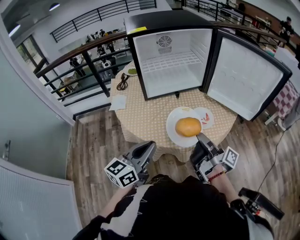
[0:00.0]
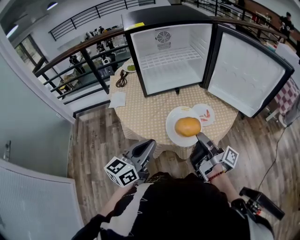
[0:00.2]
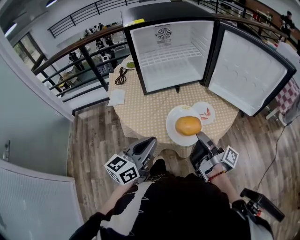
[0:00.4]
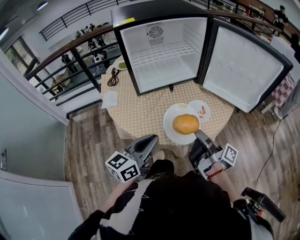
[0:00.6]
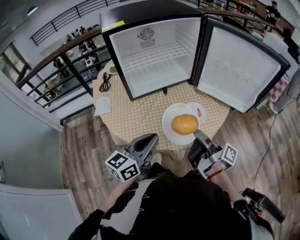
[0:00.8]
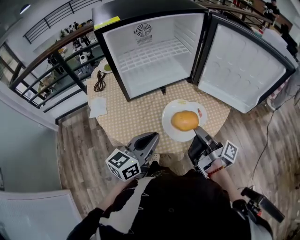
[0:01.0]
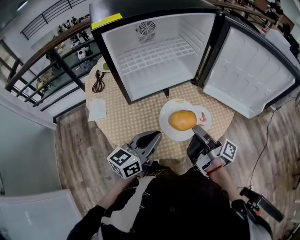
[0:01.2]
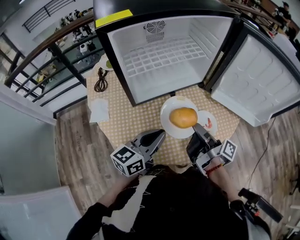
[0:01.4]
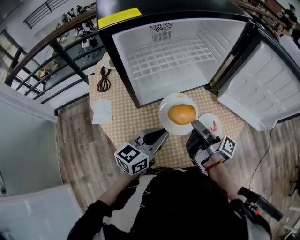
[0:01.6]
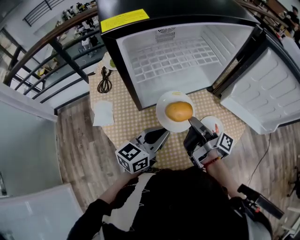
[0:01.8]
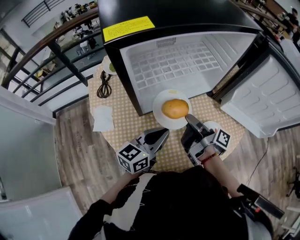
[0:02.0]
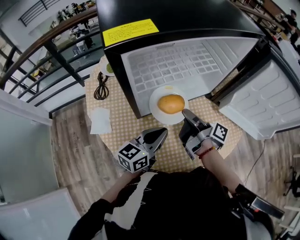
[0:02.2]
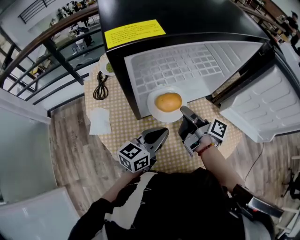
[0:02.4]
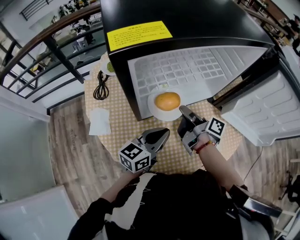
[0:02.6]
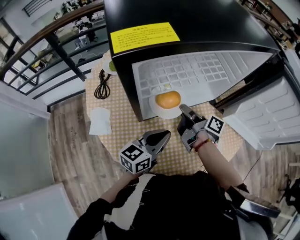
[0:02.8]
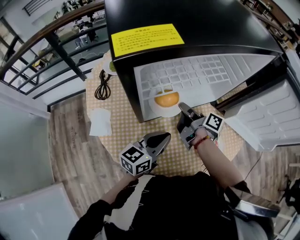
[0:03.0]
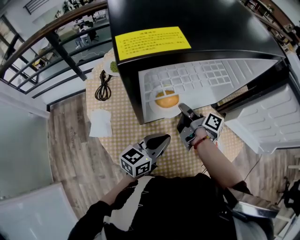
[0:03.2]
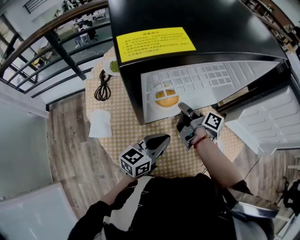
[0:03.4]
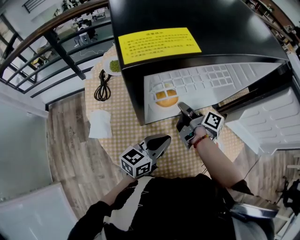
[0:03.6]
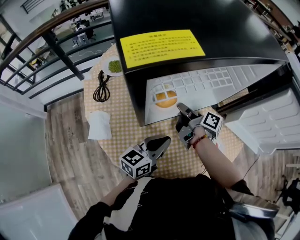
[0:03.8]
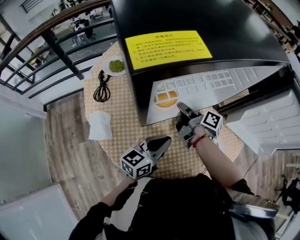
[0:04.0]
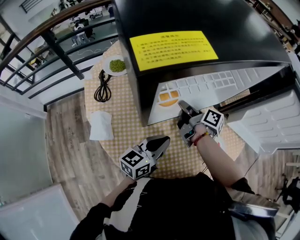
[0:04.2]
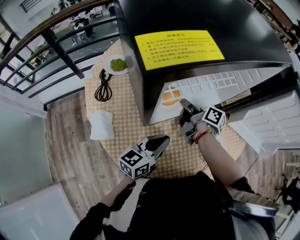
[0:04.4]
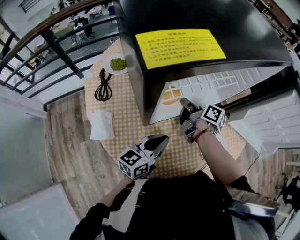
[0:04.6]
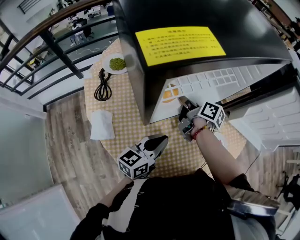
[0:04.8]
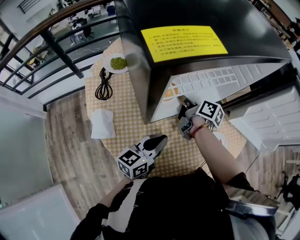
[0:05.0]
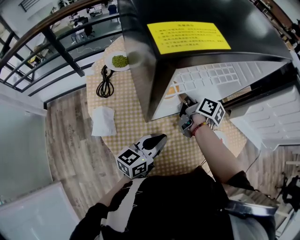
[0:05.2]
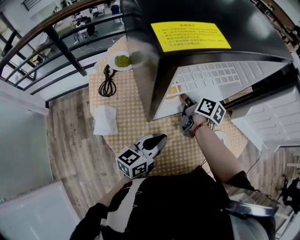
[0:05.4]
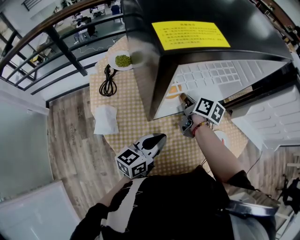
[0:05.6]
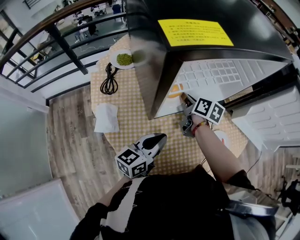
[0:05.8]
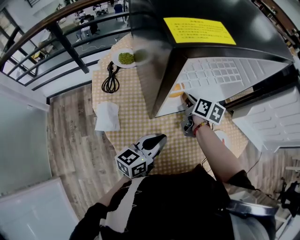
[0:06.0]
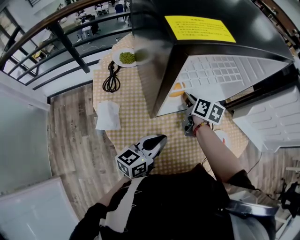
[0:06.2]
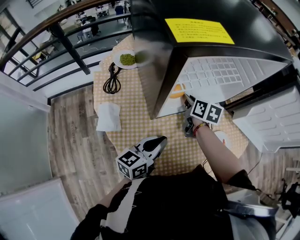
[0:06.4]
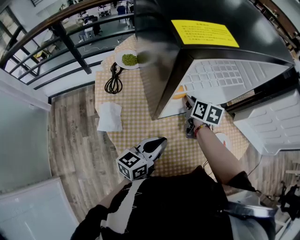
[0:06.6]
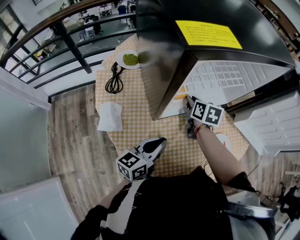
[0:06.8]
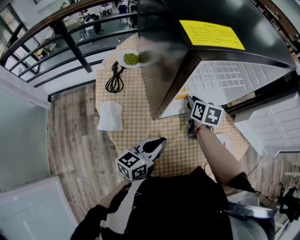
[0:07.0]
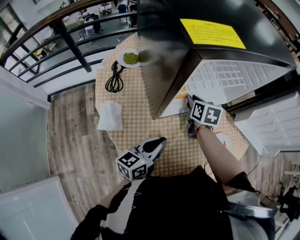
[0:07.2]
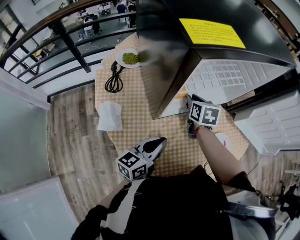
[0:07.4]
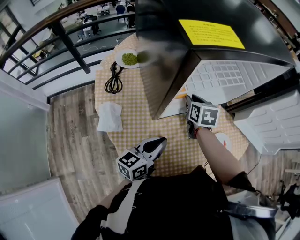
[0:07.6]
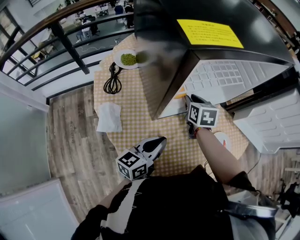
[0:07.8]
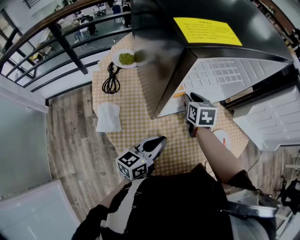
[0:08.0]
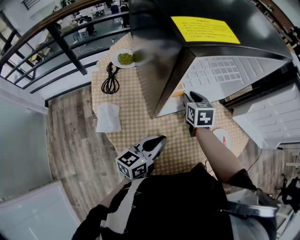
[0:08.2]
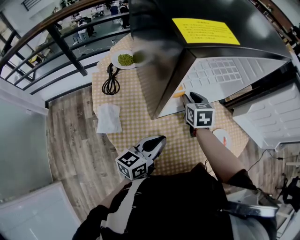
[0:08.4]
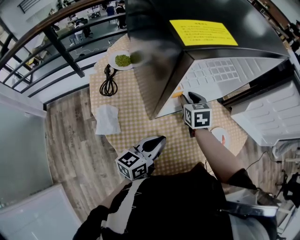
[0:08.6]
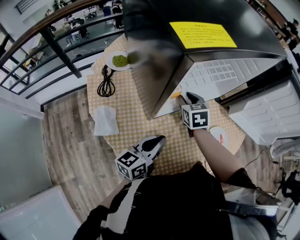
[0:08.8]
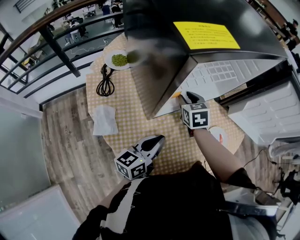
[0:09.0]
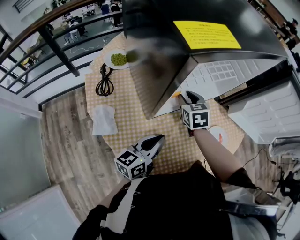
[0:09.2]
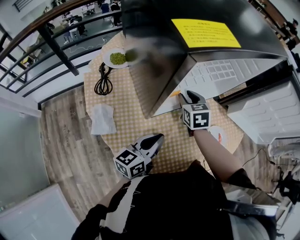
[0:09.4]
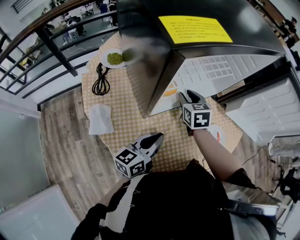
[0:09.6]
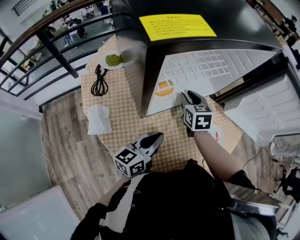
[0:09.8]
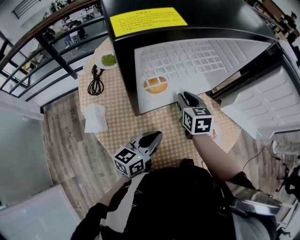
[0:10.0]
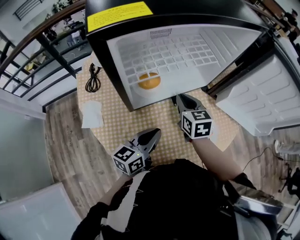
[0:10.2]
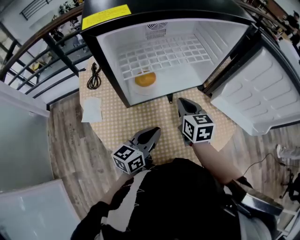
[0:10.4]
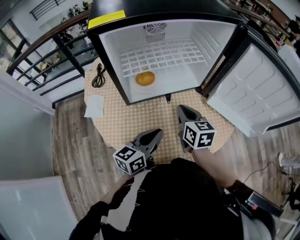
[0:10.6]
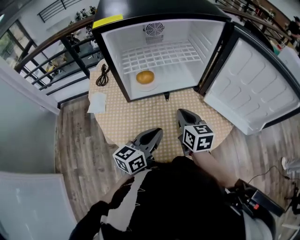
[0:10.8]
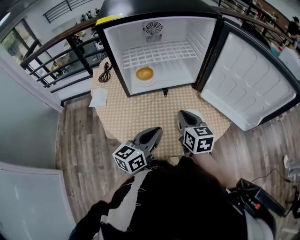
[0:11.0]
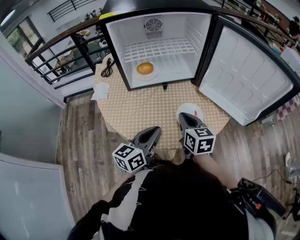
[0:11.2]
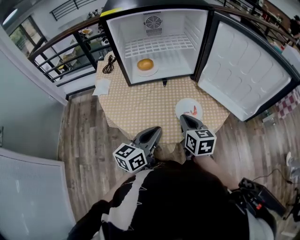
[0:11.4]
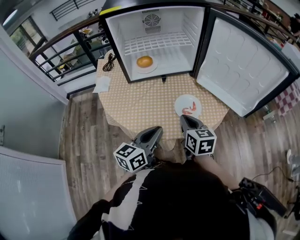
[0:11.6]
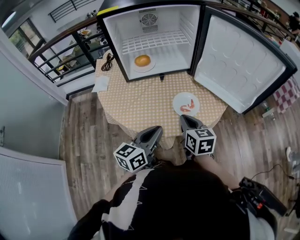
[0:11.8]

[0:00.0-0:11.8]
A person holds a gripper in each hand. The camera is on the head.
0:00.0 to 0:01.4: The grippers both shift forward by some 20 cm.
0:01.4 to 0:03.0: The right gripper moves forward and to the left, roughly 25 cm, and rotates approximately 20 degrees. The left gripper is displaced forward by about 10 cm.
0:03.0 to 0:04.4: There are only small adjustments of the grippers.
0:04.4 to 0:06.0: The right gripper changes its angle by roughly 30 degrees.
0:06.0 to 0:07.4: The right gripper changes its angle by some 30 degrees.
0:07.4 to 0:08.8: The grippers stay close to where they were, moving slightly.
0:08.8 to 0:10.4: The right gripper shifts some 15 cm to the right, backward and upward, and closes its fingers, while the left gripper moves to the right, roughly 10 cm.
0:10.4 to 0:11.8: The left gripper travels backward, upward and to the right by some 20 cm; the right gripper travels backward, to the right and upward by some 20 cm.

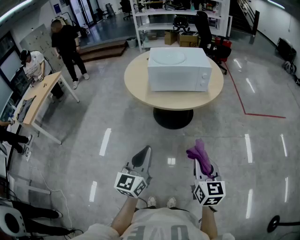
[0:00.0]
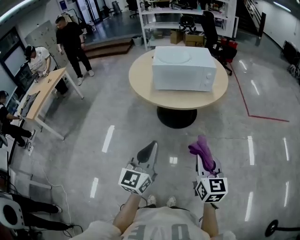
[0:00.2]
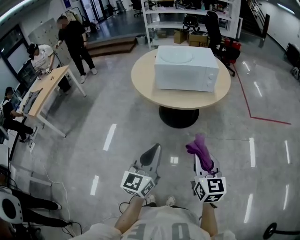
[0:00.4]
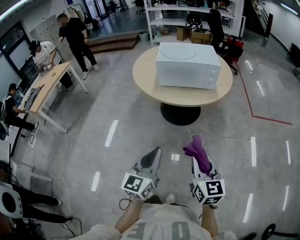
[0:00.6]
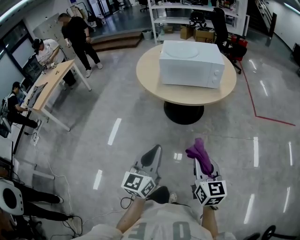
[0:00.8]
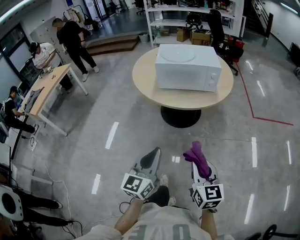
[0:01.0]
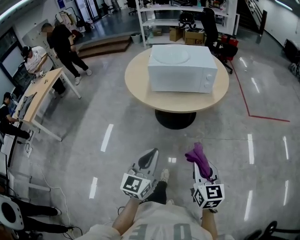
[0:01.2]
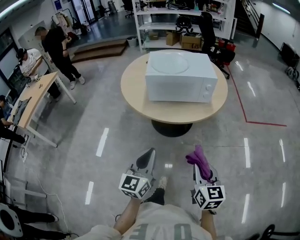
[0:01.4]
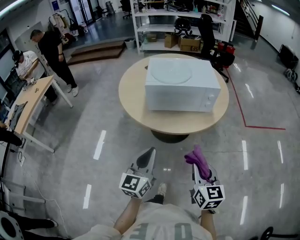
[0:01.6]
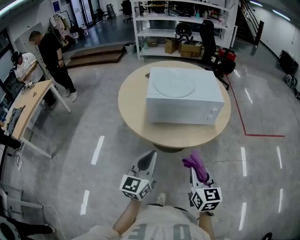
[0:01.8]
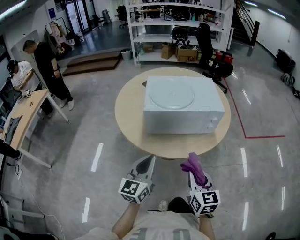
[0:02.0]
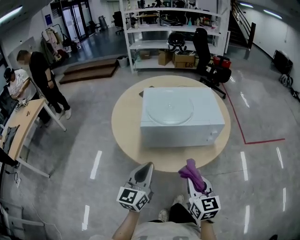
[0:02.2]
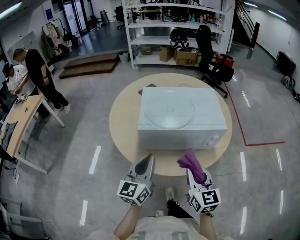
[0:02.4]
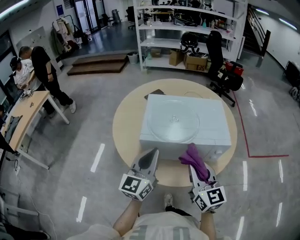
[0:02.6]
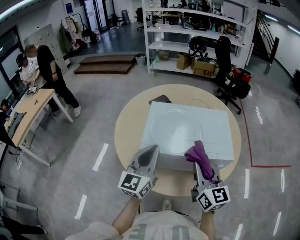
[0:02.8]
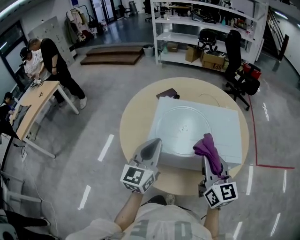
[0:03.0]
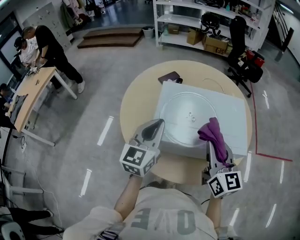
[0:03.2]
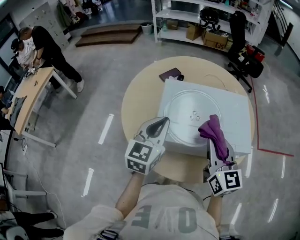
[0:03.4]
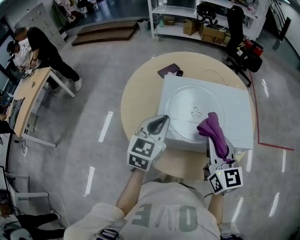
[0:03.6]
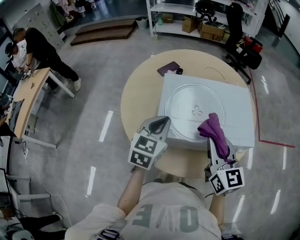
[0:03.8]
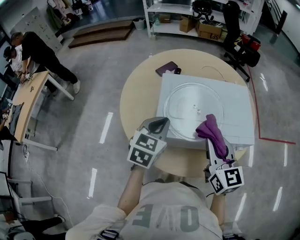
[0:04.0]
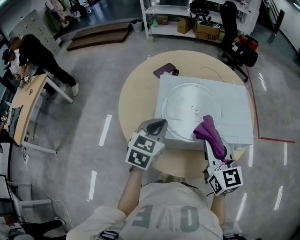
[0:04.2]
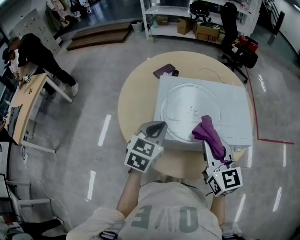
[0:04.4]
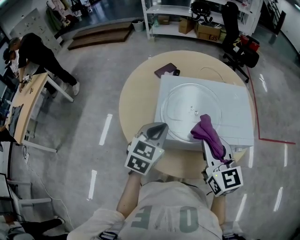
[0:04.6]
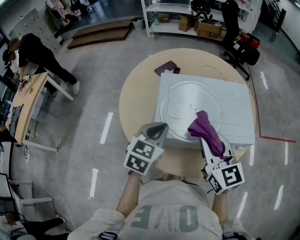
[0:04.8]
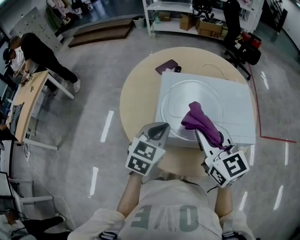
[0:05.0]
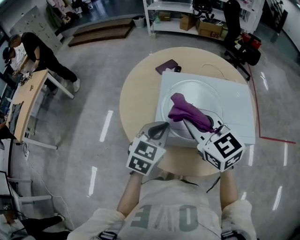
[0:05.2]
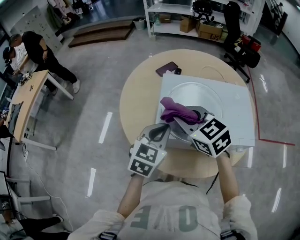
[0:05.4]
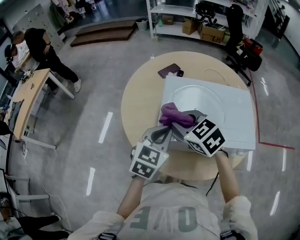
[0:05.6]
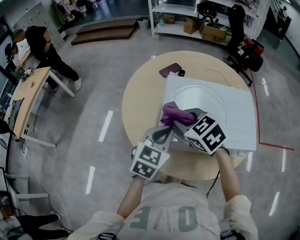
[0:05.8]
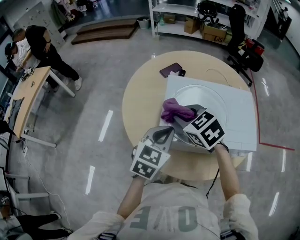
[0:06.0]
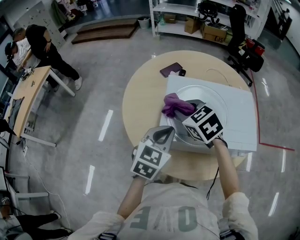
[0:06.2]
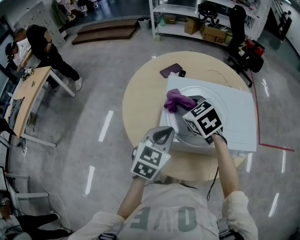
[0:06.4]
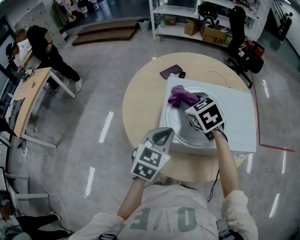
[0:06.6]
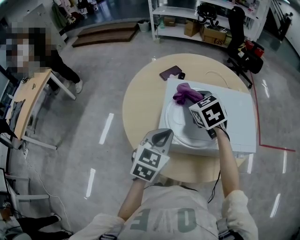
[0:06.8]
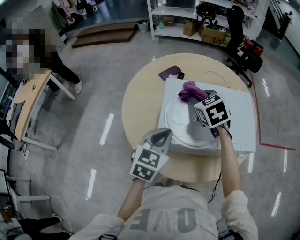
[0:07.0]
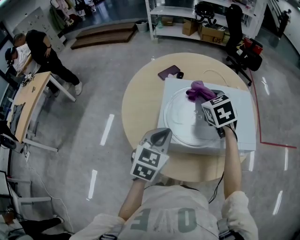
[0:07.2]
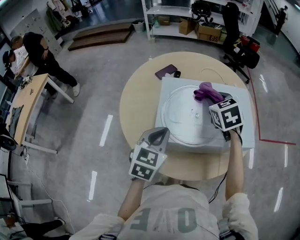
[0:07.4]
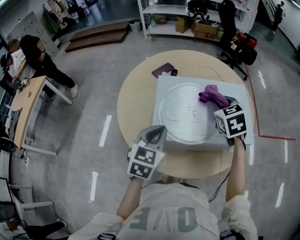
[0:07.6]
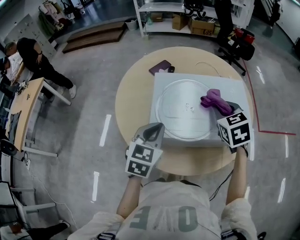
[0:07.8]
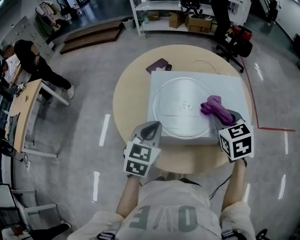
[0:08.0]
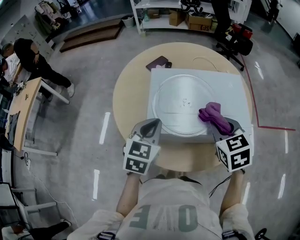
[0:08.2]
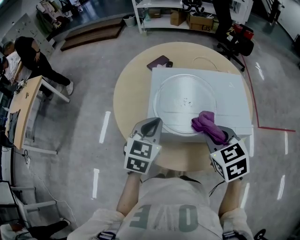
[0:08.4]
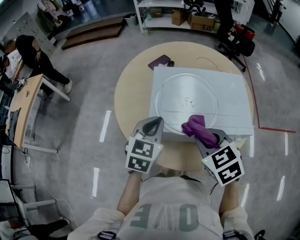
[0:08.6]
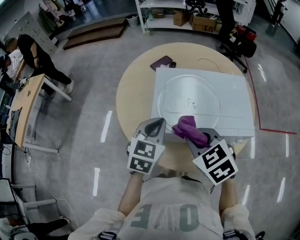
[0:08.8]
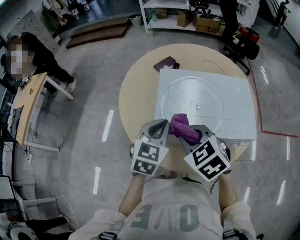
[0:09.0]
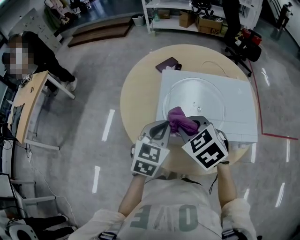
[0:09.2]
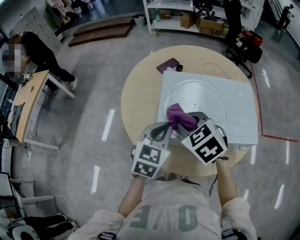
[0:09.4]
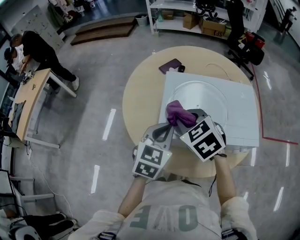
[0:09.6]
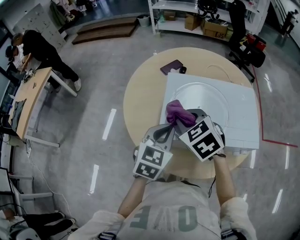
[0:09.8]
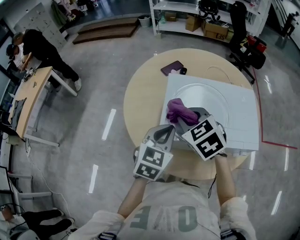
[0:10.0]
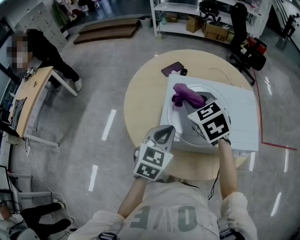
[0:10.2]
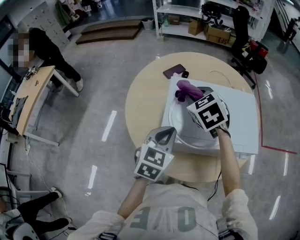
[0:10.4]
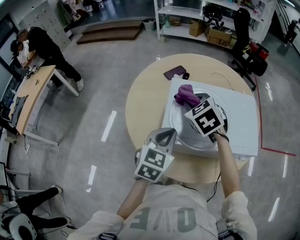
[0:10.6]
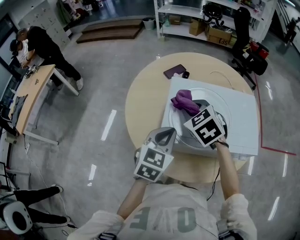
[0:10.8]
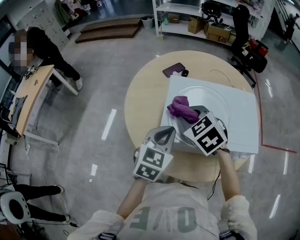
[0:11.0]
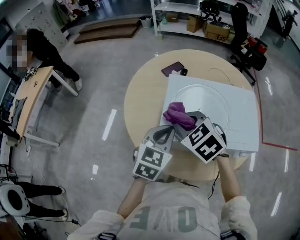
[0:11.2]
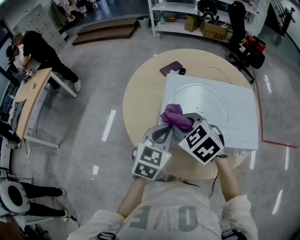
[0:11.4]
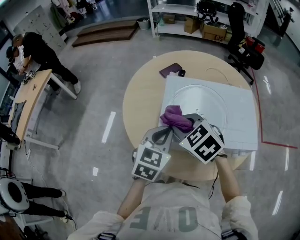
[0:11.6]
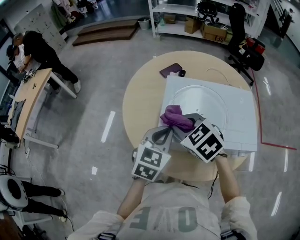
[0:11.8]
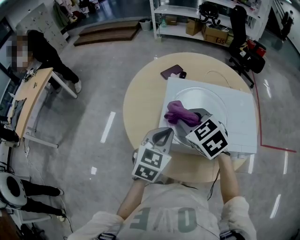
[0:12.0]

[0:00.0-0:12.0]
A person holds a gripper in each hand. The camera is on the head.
0:00.0 to 0:01.6: Both grippers travel together forward, about 20 cm.
0:01.6 to 0:03.0: The grippers both shift forward by approximately 35 cm. The right gripper changes its angle by roughly 20 degrees.
0:03.0 to 0:04.4: The left gripper goes some 5 cm downward, and tips its fingers downward by roughly 30 degrees.
0:04.4 to 0:06.0: The right gripper goes roughly 15 cm to the left and forward, and points its fingers approximately 30 degrees further downward.
0:06.0 to 0:07.6: The right gripper moves to the right, approximately 20 cm, and changes its angle by about 30 degrees.
0:07.6 to 0:09.0: The right gripper heads backward and to the left, covering some 20 cm, and rotates about 30 degrees.
0:09.0 to 0:10.4: The right gripper heads forward, covering about 15 cm.
0:10.4 to 0:12.0: The right gripper shifts about 10 cm backward.
